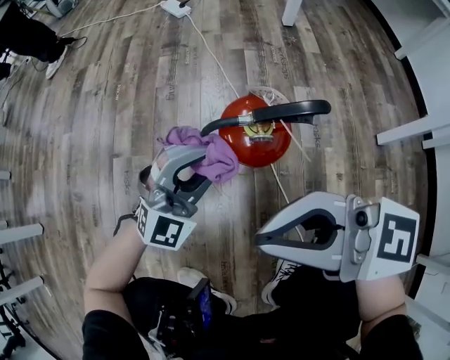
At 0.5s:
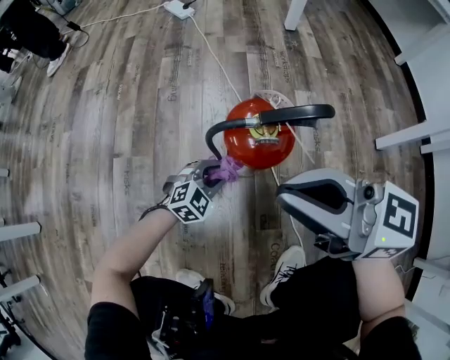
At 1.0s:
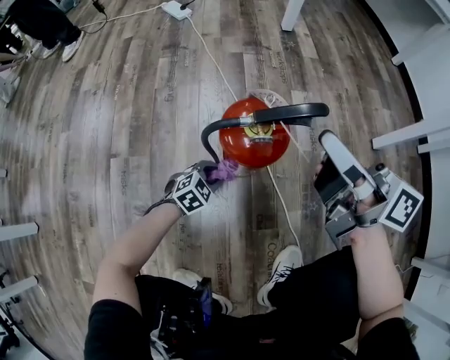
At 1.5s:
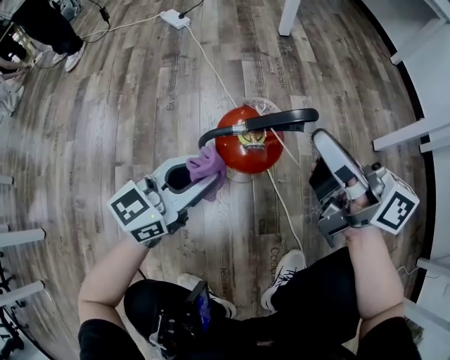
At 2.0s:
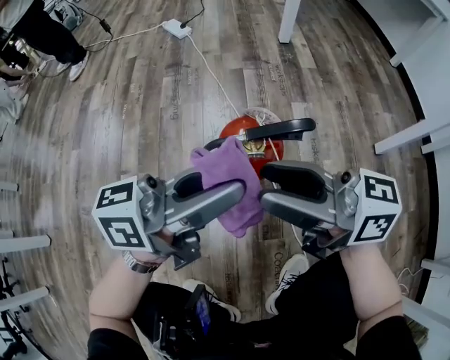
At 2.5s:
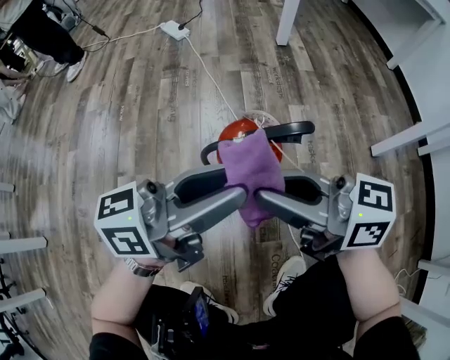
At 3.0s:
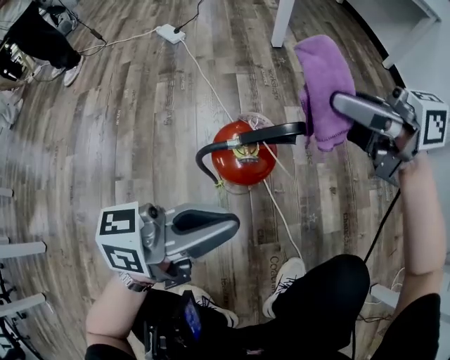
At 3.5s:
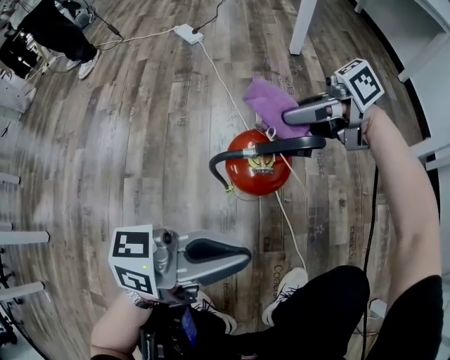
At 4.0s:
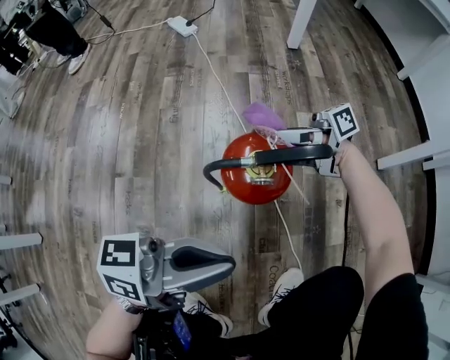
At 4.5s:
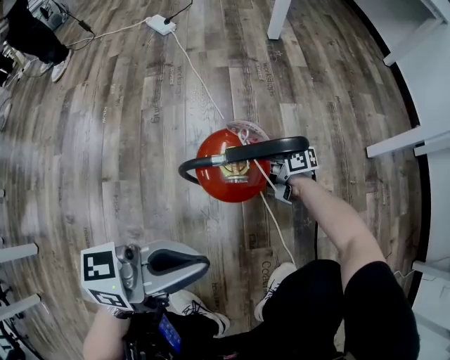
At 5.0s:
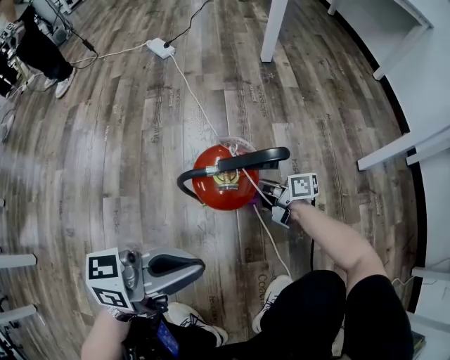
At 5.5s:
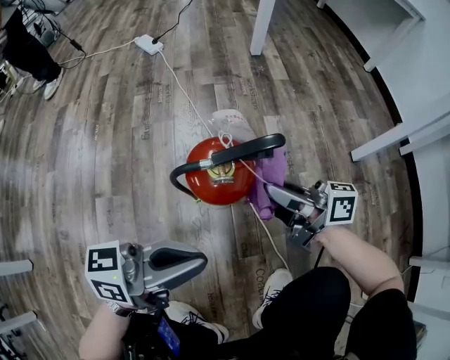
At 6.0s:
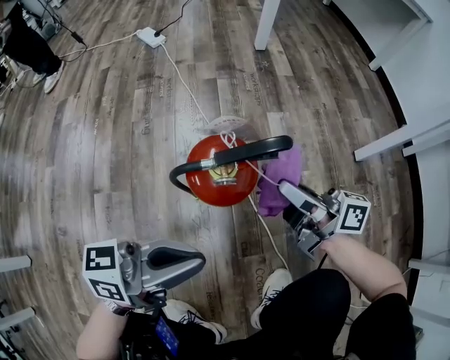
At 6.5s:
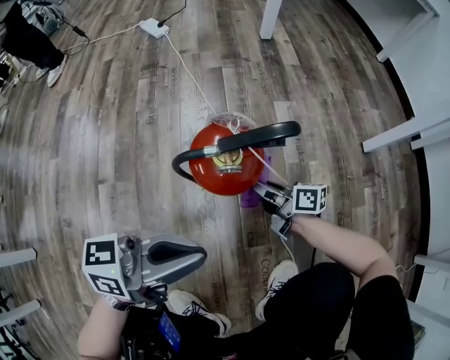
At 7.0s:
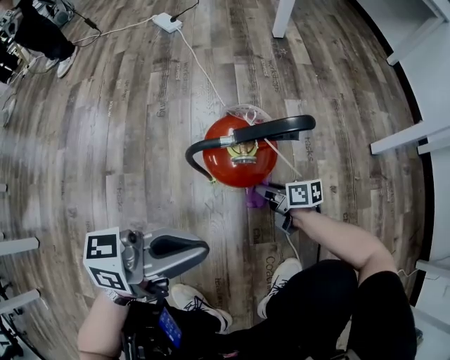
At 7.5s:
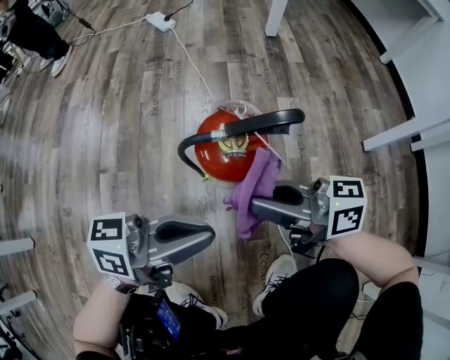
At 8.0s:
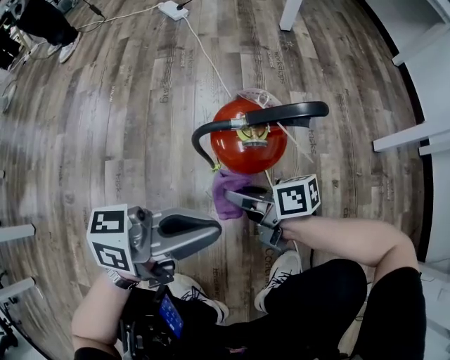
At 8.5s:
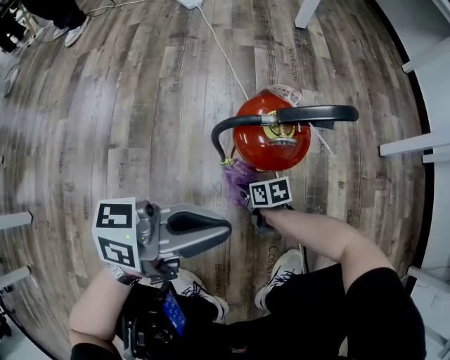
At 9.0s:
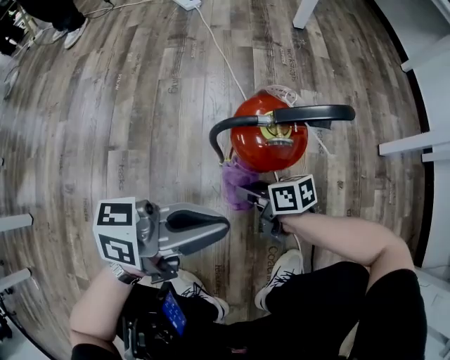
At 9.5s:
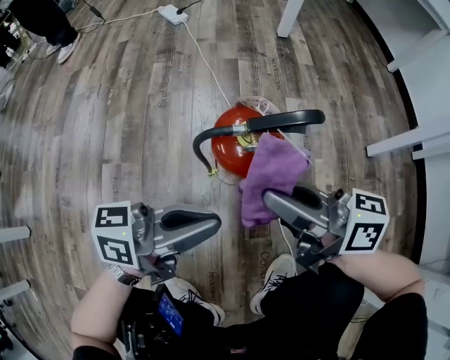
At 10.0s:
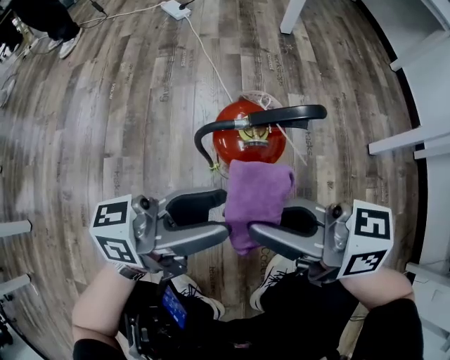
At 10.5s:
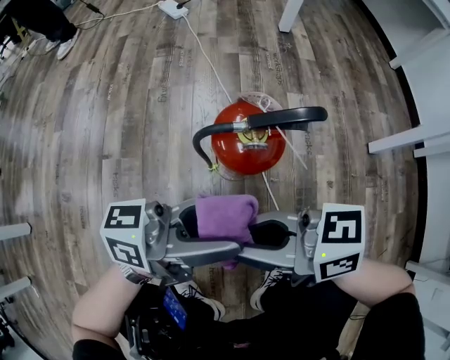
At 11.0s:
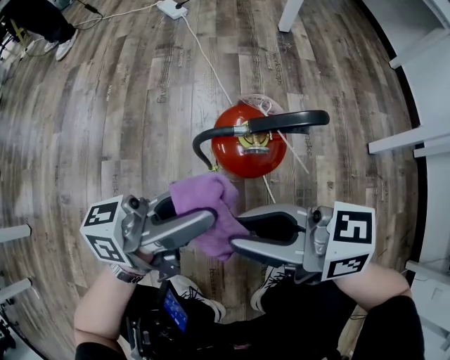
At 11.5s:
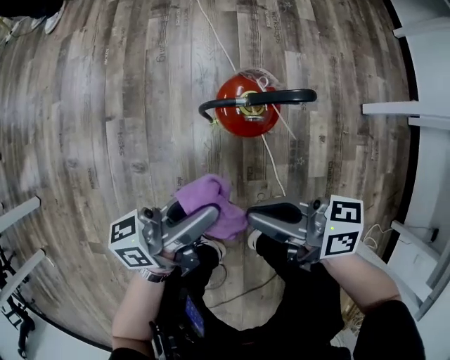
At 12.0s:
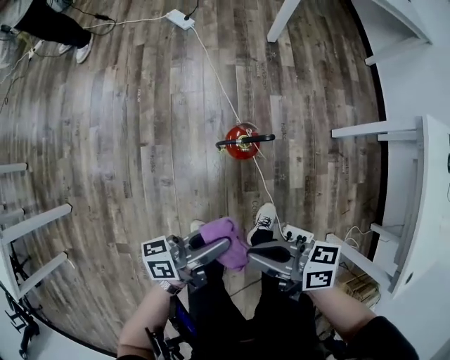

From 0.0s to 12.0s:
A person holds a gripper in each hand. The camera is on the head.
From 0.0s to 2.0s: The right gripper rotates roughly 30 degrees, and opens its fingers, while the left gripper goes downward and returns, roughly 25 cm each way, and rotates around the line of its fingers by roughly 90 degrees, counterclockwise from behind.
From 2.0s to 4.0s: The right gripper moves downward, some 15 cm, rotates some 40 degrees, and closes, while the left gripper changes place by about 10 cm, and closes its fingers.
From 4.0s to 6.0s: The right gripper travels downward and back again, approximately 25 cm each way, and rotates roughly 40 degrees.
From 6.0s to 8.0s: The right gripper swings up and down, some 30 cm each way, with 2 reversals, and swivels approximately 30 degrees.
From 8.0s to 10.0s: The right gripper moves upward, some 20 cm, and swivels approximately 30 degrees. The left gripper opens its fingers.
From 10.0s to 12.0s: Both grippers travel together upward, roughly 25 cm. The right gripper rotates some 30 degrees; the left gripper rotates some 20 degrees, and closes.

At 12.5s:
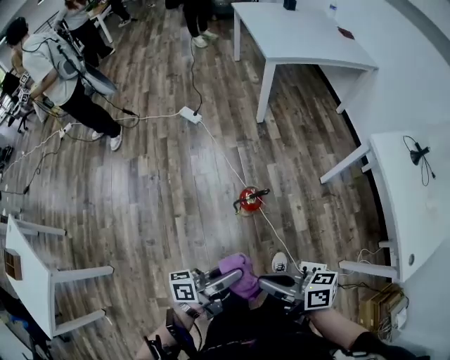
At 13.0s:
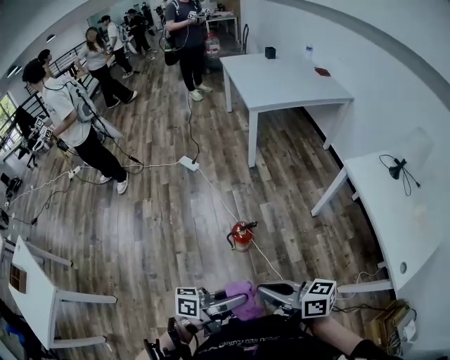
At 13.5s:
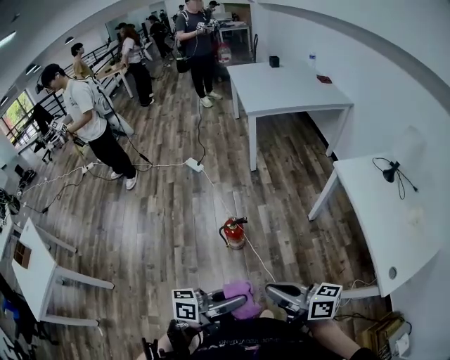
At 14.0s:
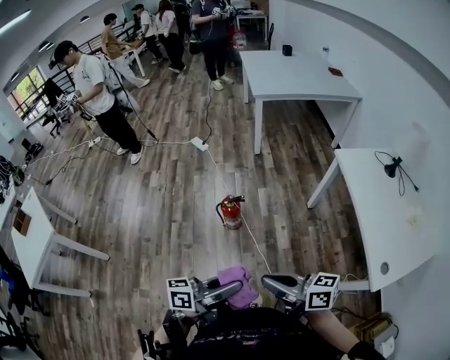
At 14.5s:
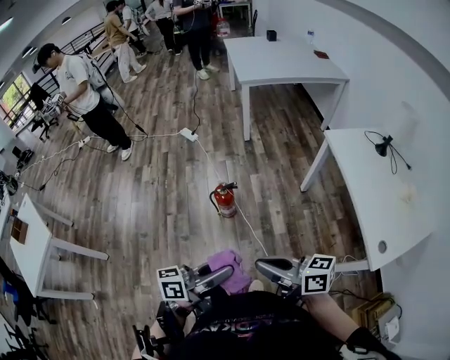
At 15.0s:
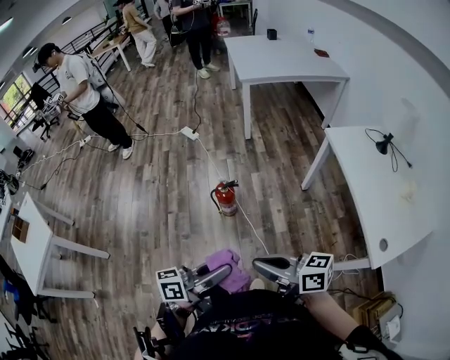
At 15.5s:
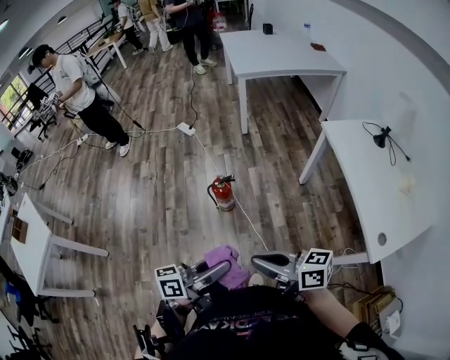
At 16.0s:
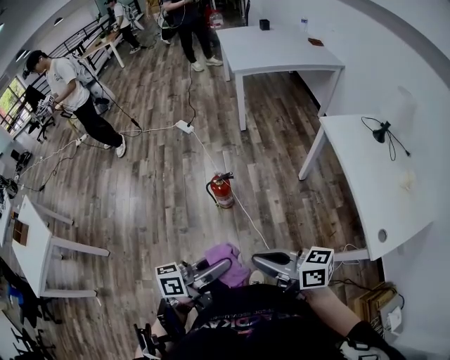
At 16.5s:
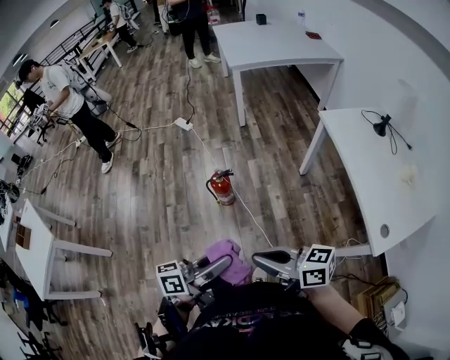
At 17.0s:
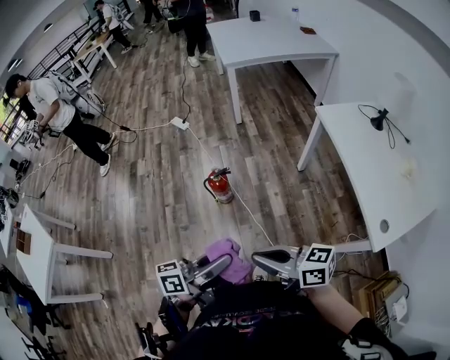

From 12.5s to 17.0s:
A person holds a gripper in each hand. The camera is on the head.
From 12.5s to 14.5s: The right gripper shifts by roughly 25 cm. Meanwhile the left gripper moves roughly 30 cm.
From 14.5s to 17.0s: The grippers move only a little.

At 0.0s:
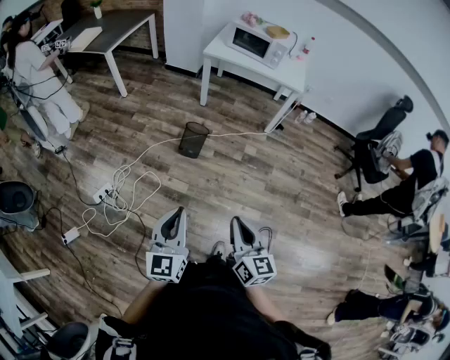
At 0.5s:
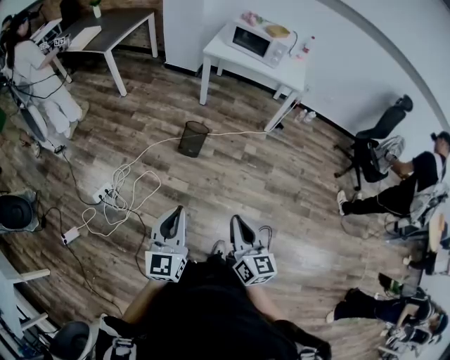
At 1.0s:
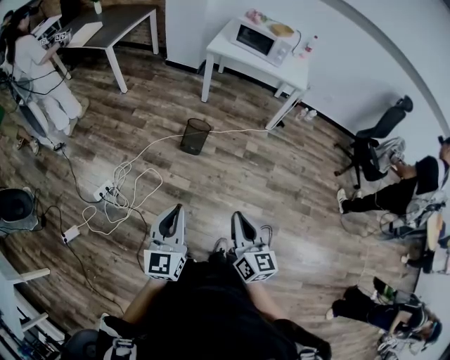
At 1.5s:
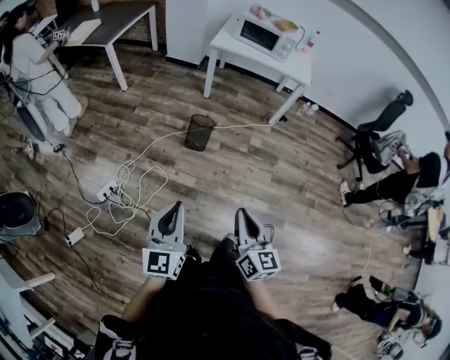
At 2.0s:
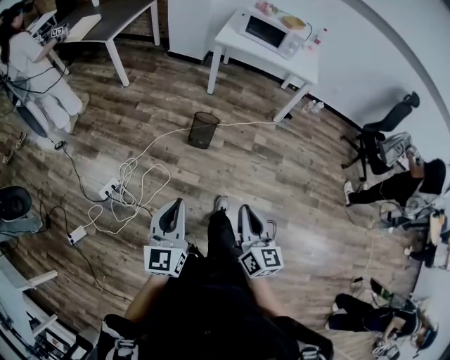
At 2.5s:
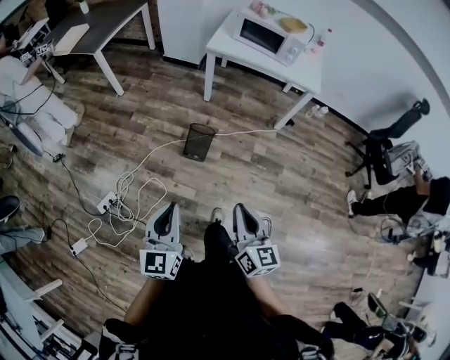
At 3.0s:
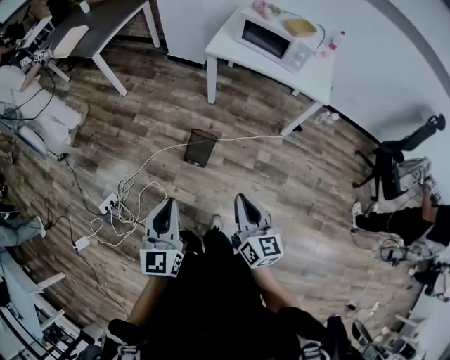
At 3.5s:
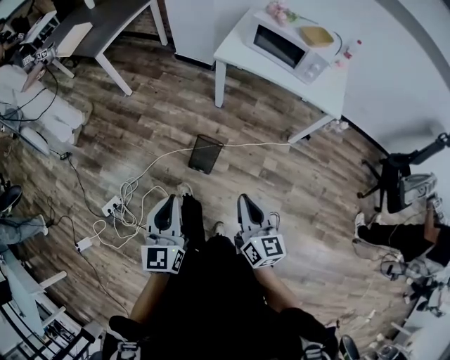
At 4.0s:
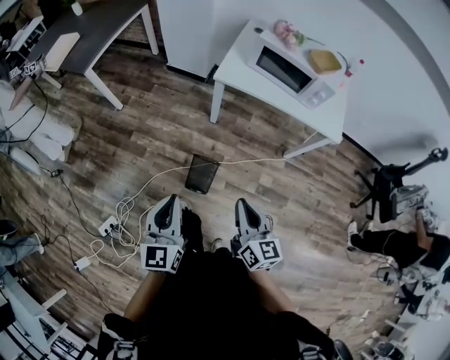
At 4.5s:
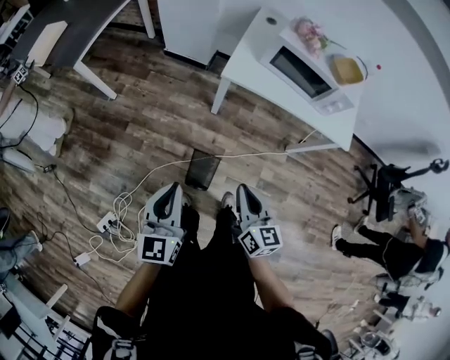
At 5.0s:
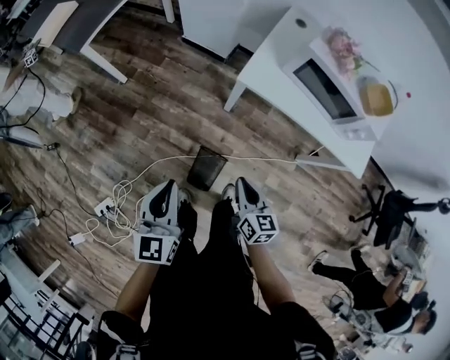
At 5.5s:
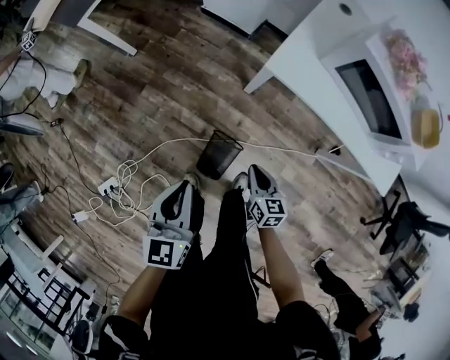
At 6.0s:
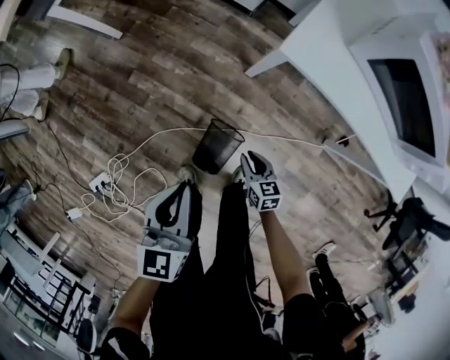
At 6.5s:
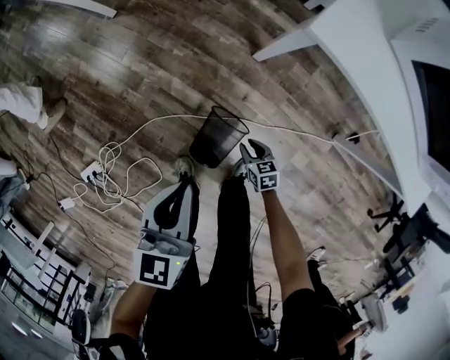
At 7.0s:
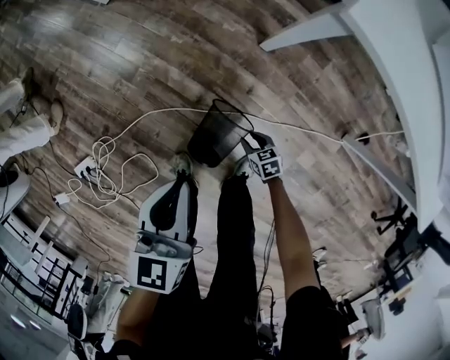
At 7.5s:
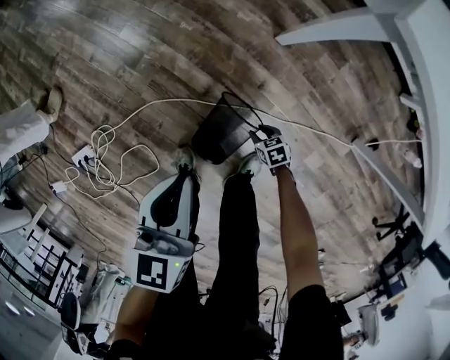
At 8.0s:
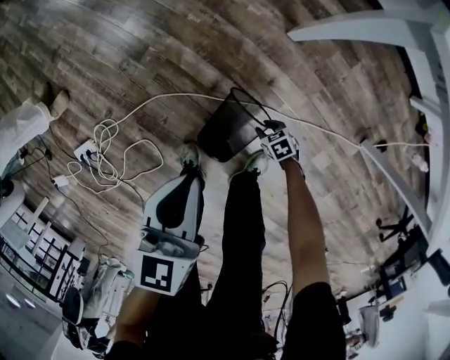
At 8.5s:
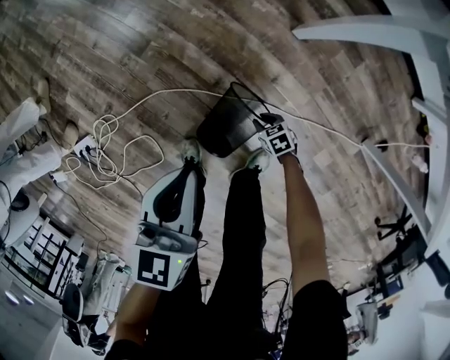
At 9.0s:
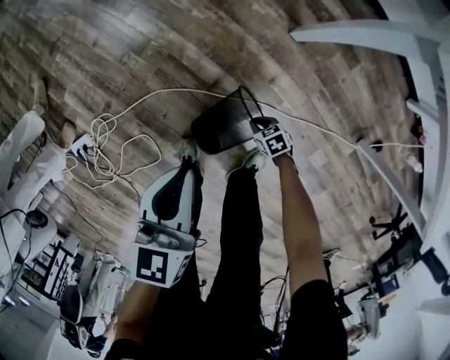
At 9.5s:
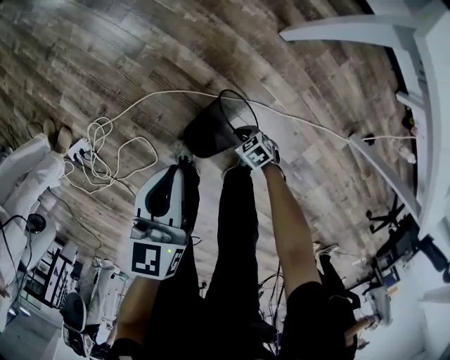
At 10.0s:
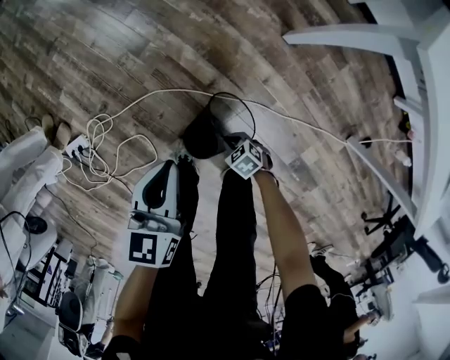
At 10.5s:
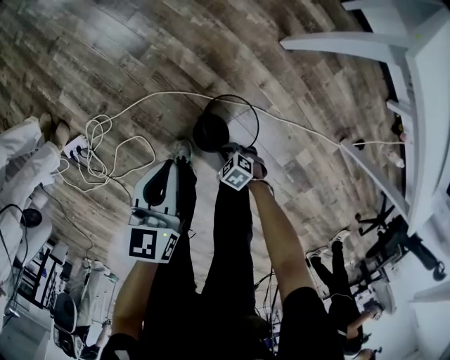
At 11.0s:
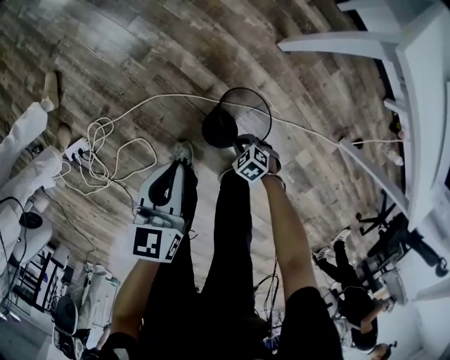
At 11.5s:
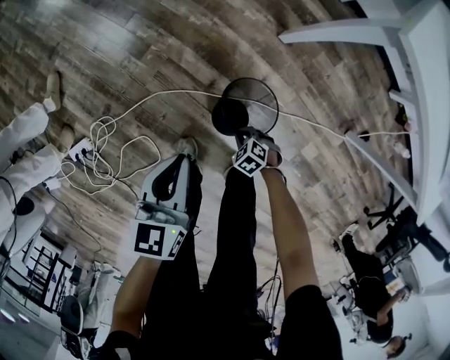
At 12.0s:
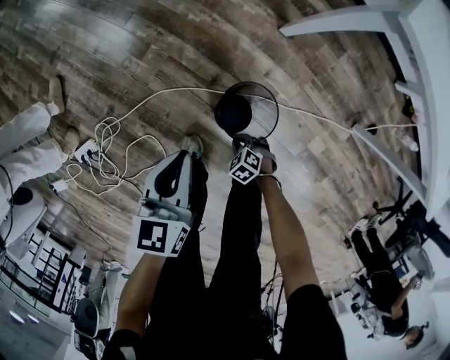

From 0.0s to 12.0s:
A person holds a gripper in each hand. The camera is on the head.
From 0.0s to 2.0s: Both grippers travel together to the left and forward, some 10 cm.
From 2.0s to 4.0s: The two grippers travel together, forward, approximately 50 cm.
From 4.0s to 6.0s: The left gripper heads forward and downward, covering approximately 35 cm, and swivels approximately 20 degrees, while the right gripper moves downward and forward, approximately 60 cm, and turns by approximately 40 degrees.
From 6.0s to 8.0s: The left gripper is displaced downward by approximately 20 cm. Meanwhile the right gripper is displaced downward by about 40 cm, and changes its angle by some 50 degrees.
From 8.0s to 10.0s: The left gripper moves to the left, some 10 cm. Meanwhile the right gripper shifts some 15 cm to the left and upward, and closes its fingers.
From 10.0s to 12.0s: There are only small adjustments of the grippers.
